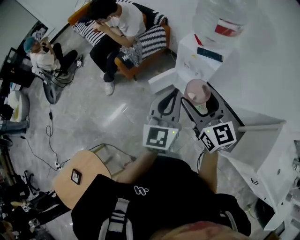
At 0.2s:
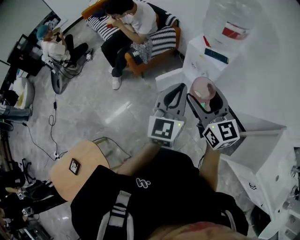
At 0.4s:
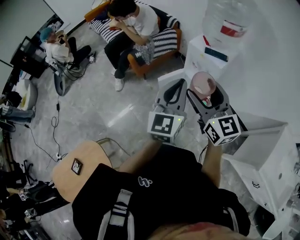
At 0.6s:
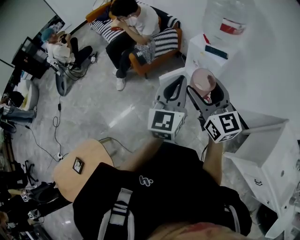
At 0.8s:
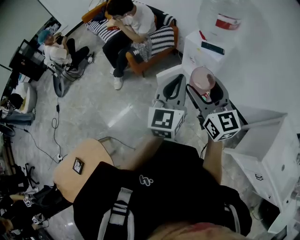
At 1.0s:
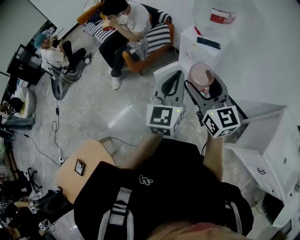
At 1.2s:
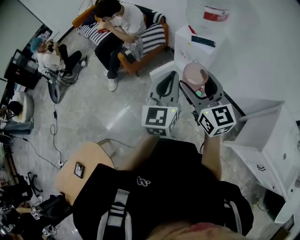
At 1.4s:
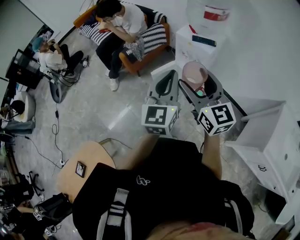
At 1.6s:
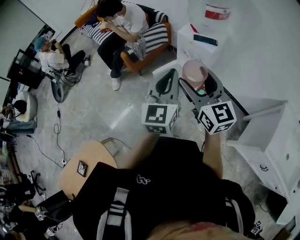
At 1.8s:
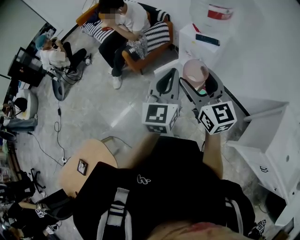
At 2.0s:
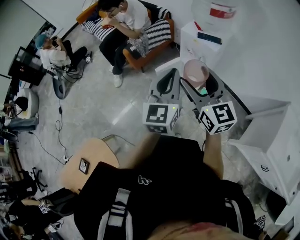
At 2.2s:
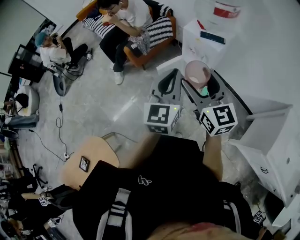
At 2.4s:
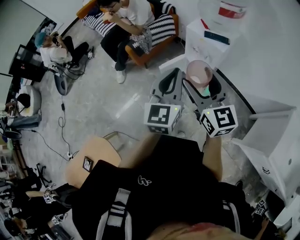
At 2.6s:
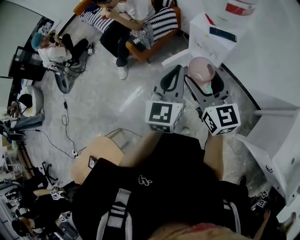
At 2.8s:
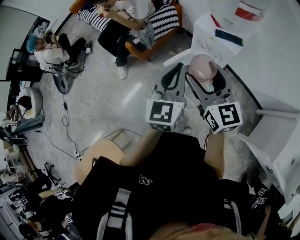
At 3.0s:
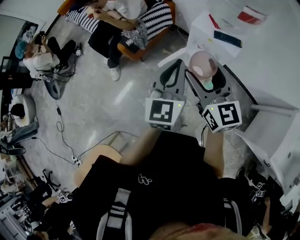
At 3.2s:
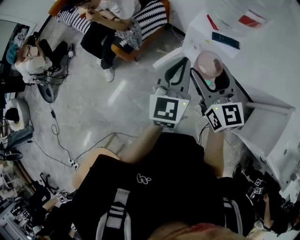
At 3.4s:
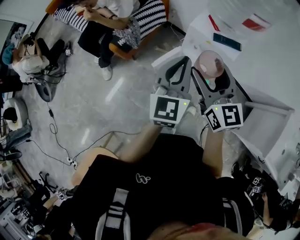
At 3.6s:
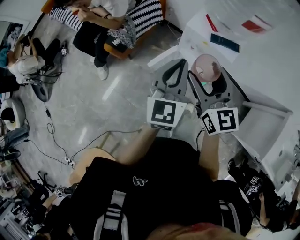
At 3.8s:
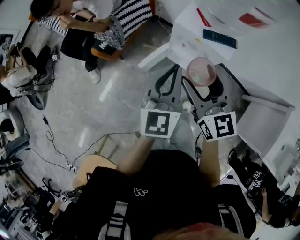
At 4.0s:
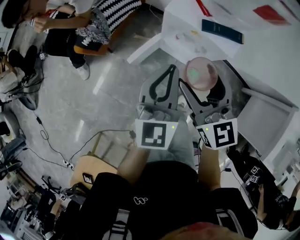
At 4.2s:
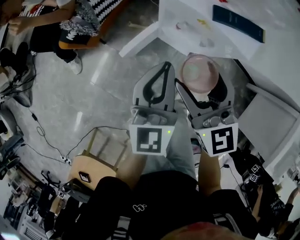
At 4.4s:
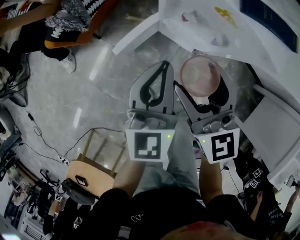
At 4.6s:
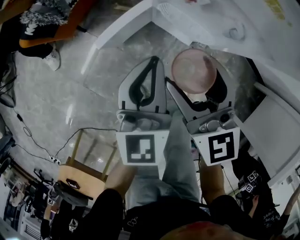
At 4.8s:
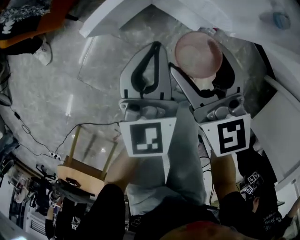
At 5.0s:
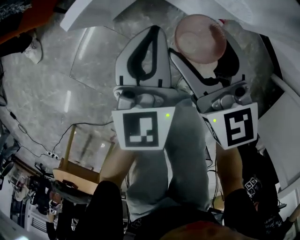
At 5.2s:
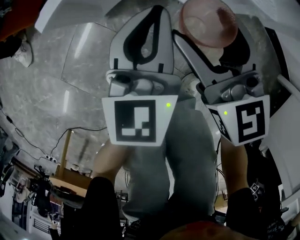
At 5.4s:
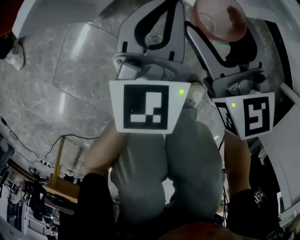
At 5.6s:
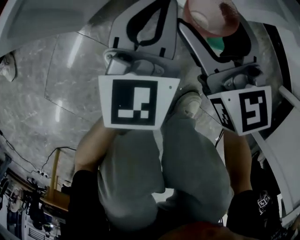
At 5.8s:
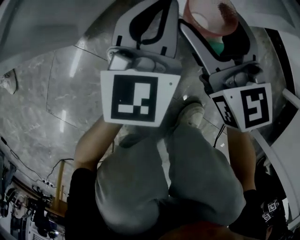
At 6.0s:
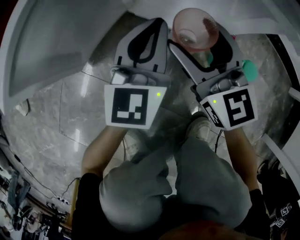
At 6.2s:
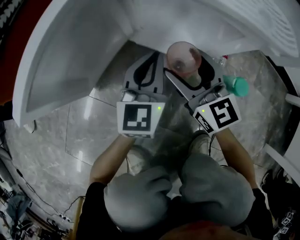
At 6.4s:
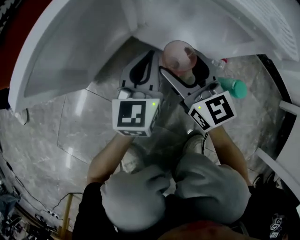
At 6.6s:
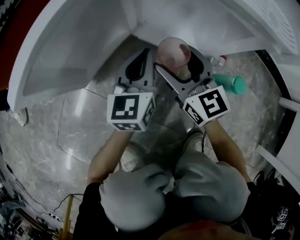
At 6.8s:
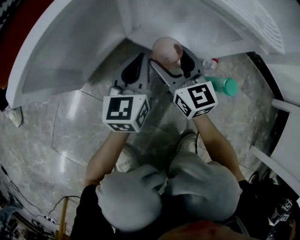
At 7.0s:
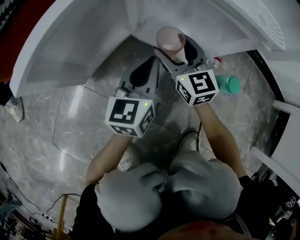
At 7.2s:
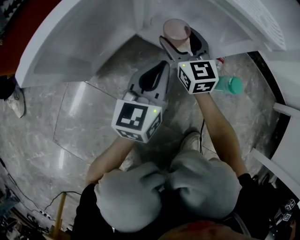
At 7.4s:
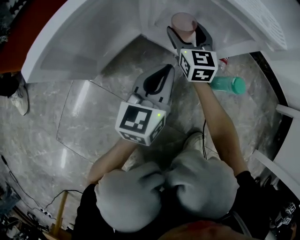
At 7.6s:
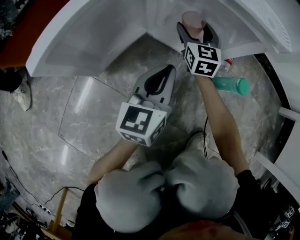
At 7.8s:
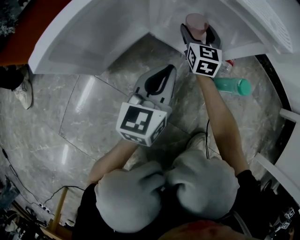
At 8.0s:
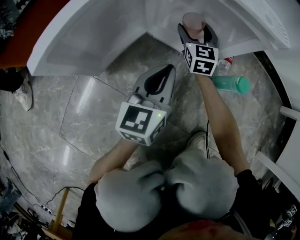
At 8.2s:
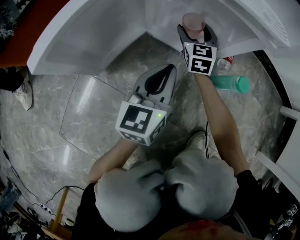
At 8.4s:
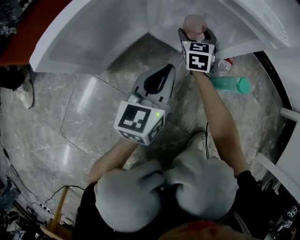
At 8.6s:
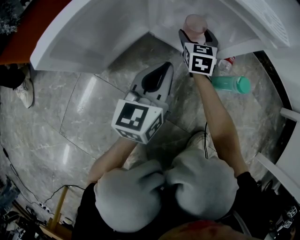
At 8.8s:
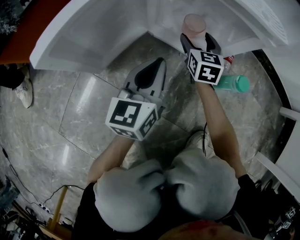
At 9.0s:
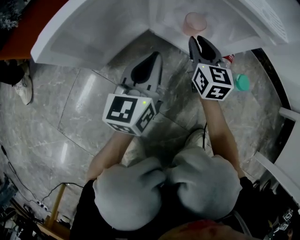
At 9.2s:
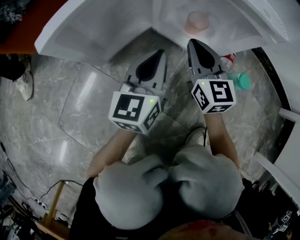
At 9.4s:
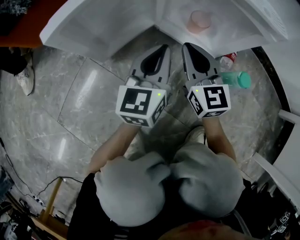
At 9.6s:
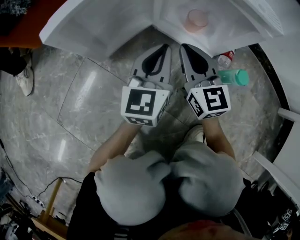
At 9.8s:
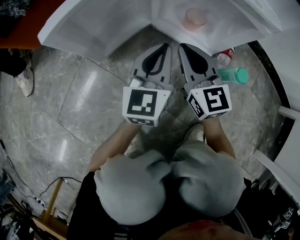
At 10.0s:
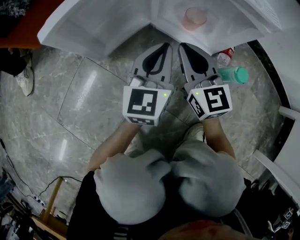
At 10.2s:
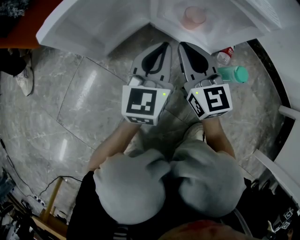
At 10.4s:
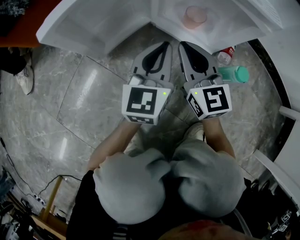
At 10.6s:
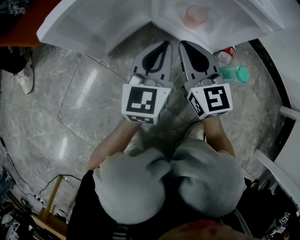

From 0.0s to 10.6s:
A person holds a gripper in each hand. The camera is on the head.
From 0.0s to 1.6s: The two grippers go roughly 10 cm backward.
From 1.6s to 3.0s: The two grippers go about 20 cm forward.
From 3.0s to 4.6s: The grippers both shift downward by about 40 cm.
From 4.6s to 6.0s: The grippers both shift downward by some 40 cm.
From 6.0s to 7.6s: The left gripper heads backward, covering about 5 cm. Meanwhile the right gripper moves forward and downward, some 15 cm, and rotates some 20 degrees.
From 7.6s to 9.0s: The right gripper travels backward by about 10 cm, and closes up.
From 9.0s to 10.6s: The right gripper shifts roughly 10 cm backward, upward and to the left.

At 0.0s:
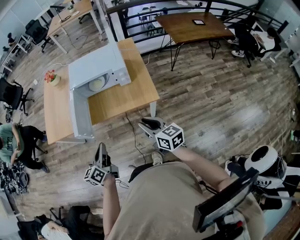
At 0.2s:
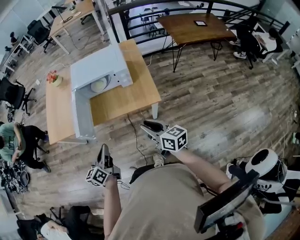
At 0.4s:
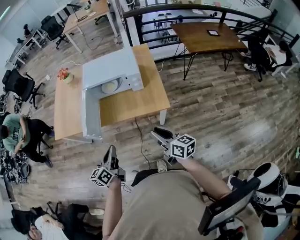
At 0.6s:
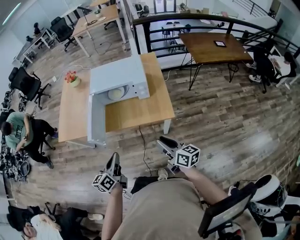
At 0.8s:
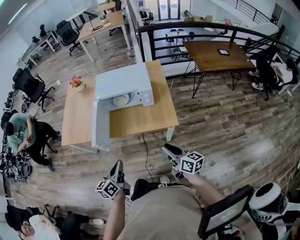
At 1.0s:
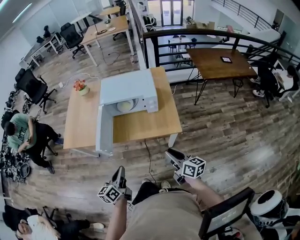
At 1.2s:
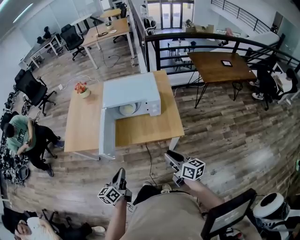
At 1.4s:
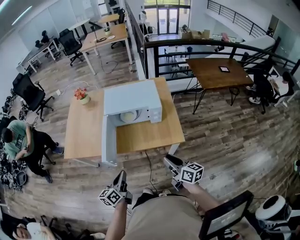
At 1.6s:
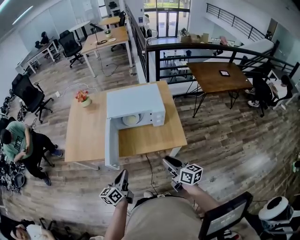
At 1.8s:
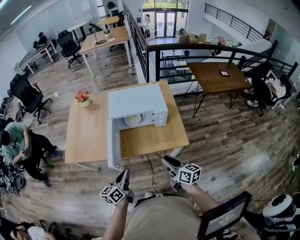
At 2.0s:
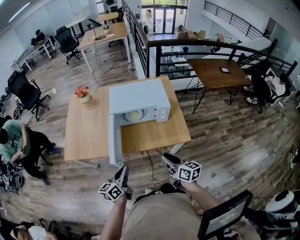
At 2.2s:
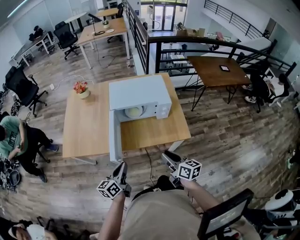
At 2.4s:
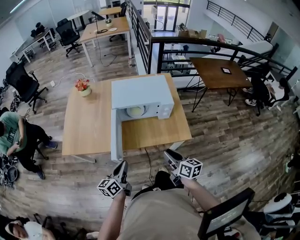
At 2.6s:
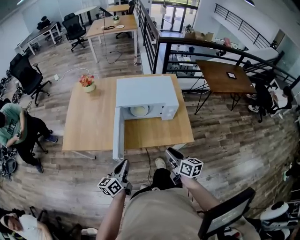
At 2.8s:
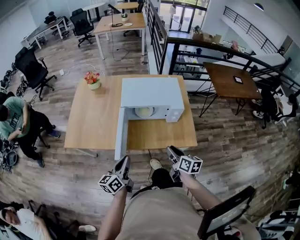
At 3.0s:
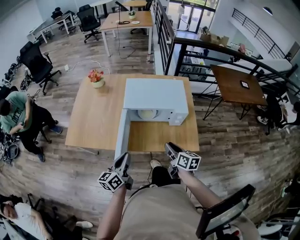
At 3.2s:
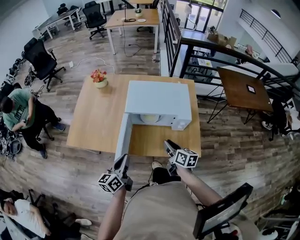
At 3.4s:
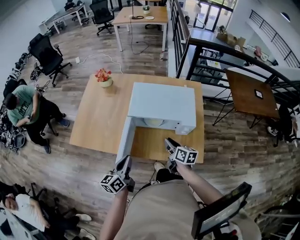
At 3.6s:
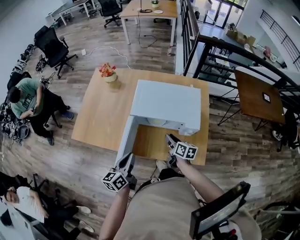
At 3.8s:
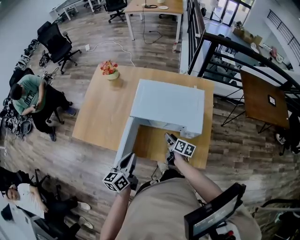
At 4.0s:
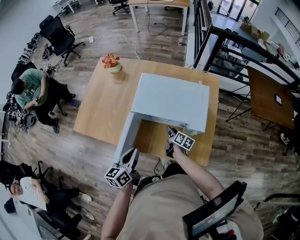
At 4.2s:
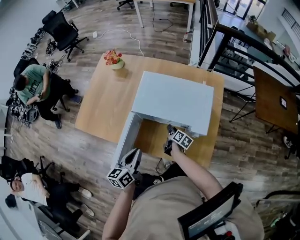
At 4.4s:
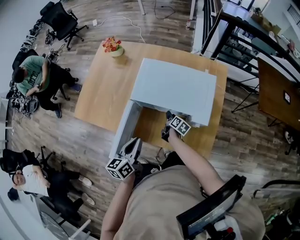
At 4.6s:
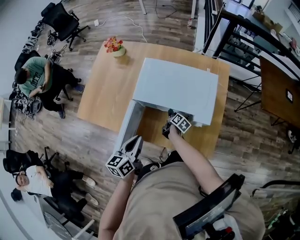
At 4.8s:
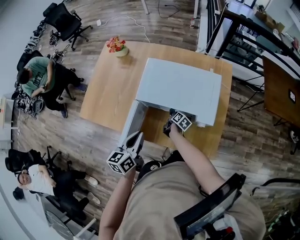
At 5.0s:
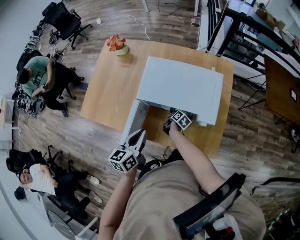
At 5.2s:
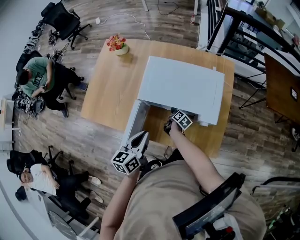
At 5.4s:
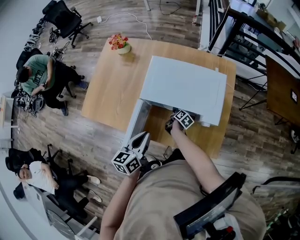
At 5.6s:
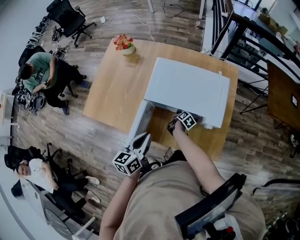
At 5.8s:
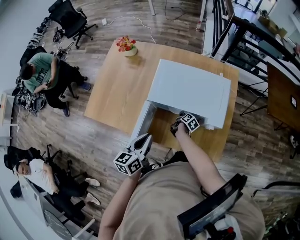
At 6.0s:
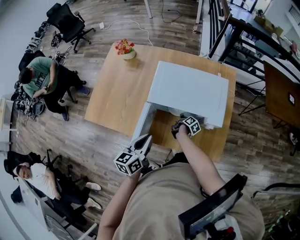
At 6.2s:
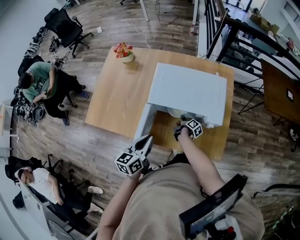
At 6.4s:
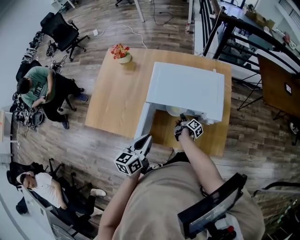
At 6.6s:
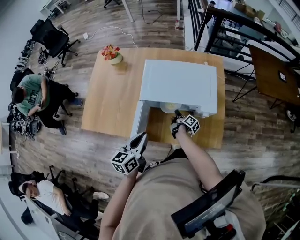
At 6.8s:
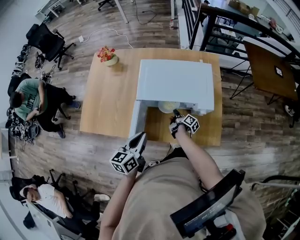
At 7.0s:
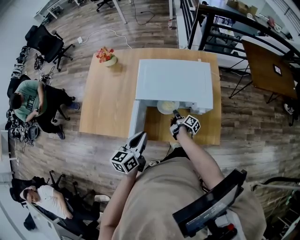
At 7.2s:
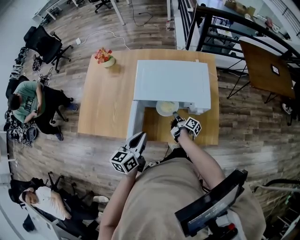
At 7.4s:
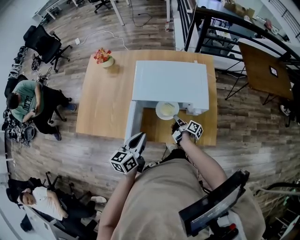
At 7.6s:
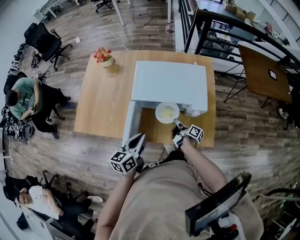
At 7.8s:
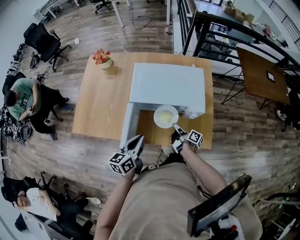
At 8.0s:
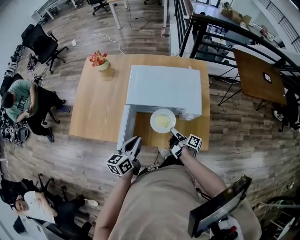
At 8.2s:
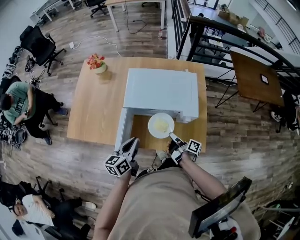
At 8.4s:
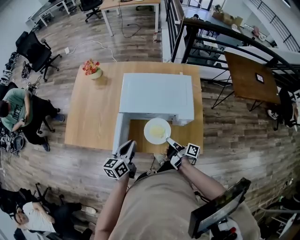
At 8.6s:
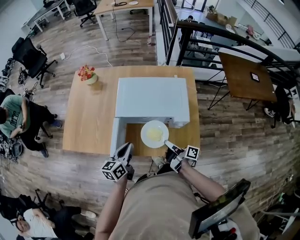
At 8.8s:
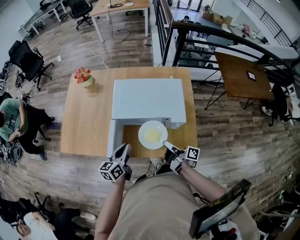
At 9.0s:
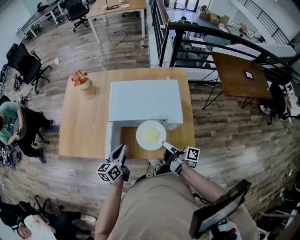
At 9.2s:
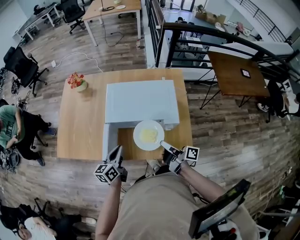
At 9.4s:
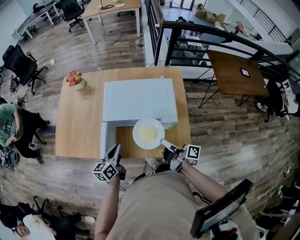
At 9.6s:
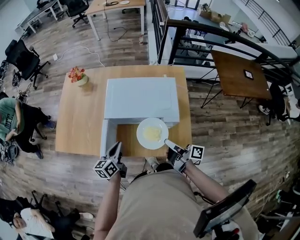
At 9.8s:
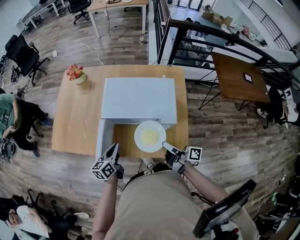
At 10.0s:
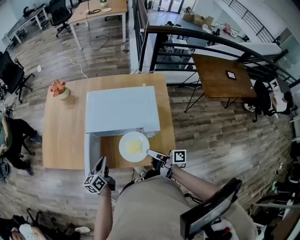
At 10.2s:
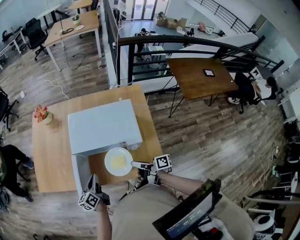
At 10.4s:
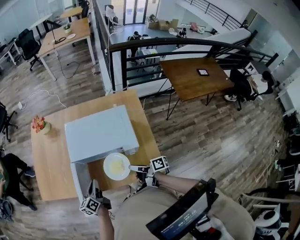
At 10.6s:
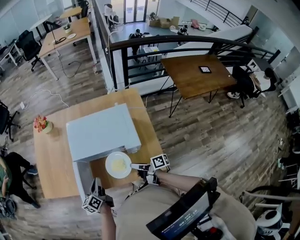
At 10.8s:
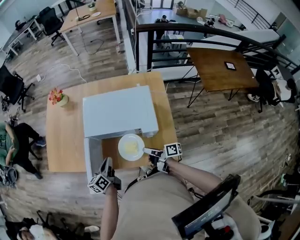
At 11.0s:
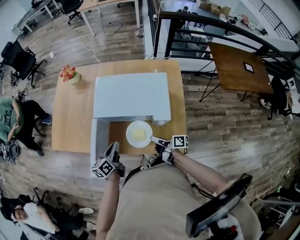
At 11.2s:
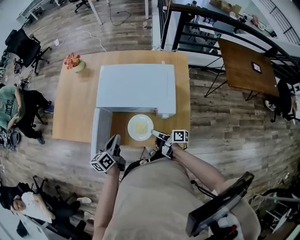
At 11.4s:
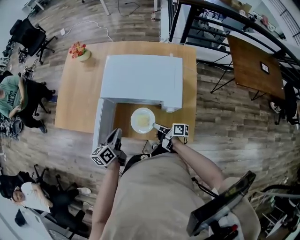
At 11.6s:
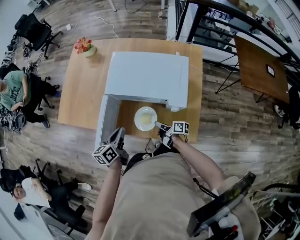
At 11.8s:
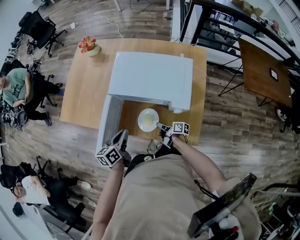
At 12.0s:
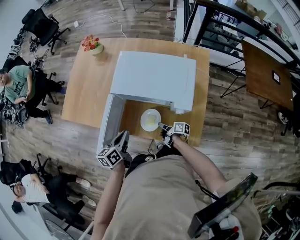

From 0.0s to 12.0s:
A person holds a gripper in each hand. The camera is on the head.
From 0.0s to 1.6s: The grippers both shift to the left and forward by approximately 10 cm.
From 1.6s to 3.0s: The left gripper travels forward and to the left by some 10 cm; the right gripper is displaced forward, to the left and downward by some 15 cm.
From 3.0s to 4.4s: The right gripper is displaced forward and downward by some 40 cm, and turns by approximately 30 degrees. Meanwhile the left gripper heads forward and to the right, covering some 15 cm.
From 4.4s to 6.0s: The right gripper changes its angle by some 20 degrees, and closes its fingers.
From 6.0s to 7.6s: The right gripper is displaced upward and backward by approximately 15 cm, and rotates about 30 degrees.
From 7.6s to 9.0s: The right gripper is displaced upward by about 15 cm.
From 9.0s to 10.4s: The grippers move only a little.
From 10.4s to 12.0s: The right gripper is displaced downward by roughly 20 cm, and swivels some 20 degrees.

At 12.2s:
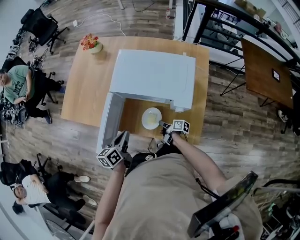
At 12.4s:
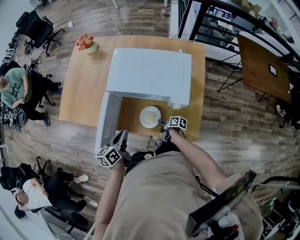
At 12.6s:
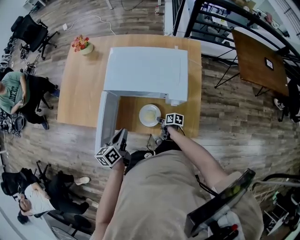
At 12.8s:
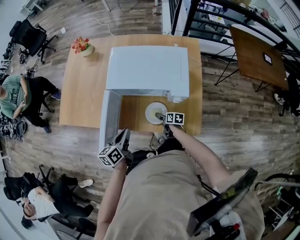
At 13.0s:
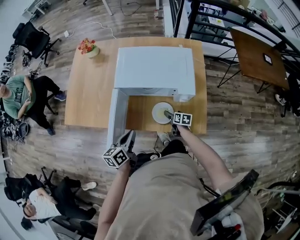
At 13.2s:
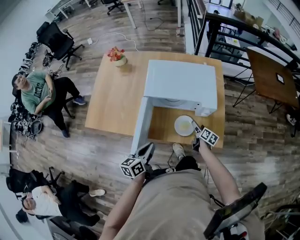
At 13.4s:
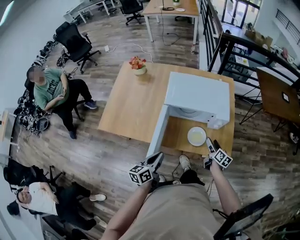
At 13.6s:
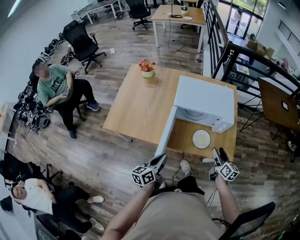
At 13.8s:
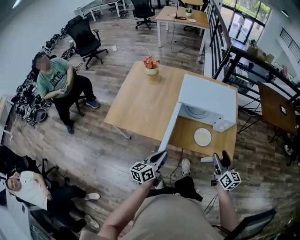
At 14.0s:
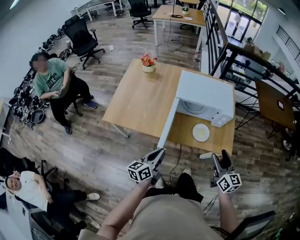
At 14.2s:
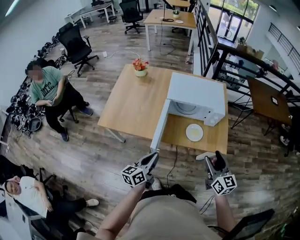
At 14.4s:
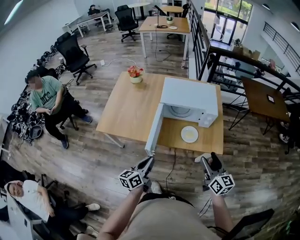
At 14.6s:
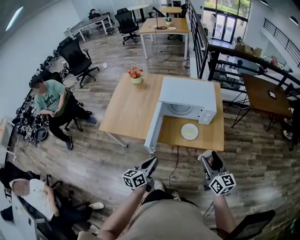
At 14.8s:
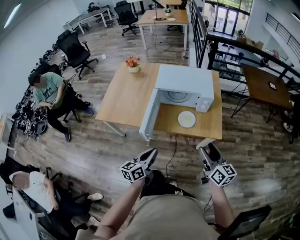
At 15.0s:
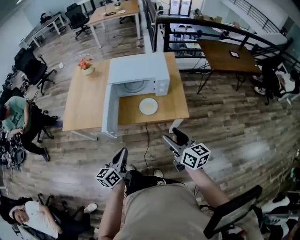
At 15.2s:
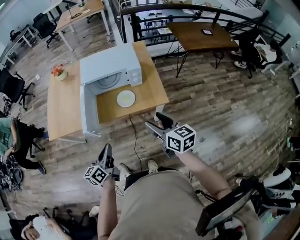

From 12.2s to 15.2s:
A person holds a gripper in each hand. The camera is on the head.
From 12.2s to 13.8s: The left gripper ends up roughly 25 cm from where it was, and changes its angle by approximately 20 degrees; the right gripper is displaced upward by approximately 35 cm, rotates approximately 70 degrees, and opens.
From 13.8s to 15.2s: The left gripper shifts some 20 cm to the right and backward; the right gripper goes some 20 cm backward, to the right and upward.
